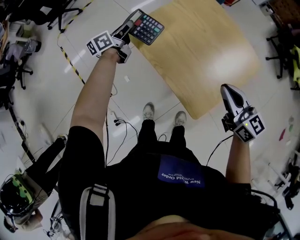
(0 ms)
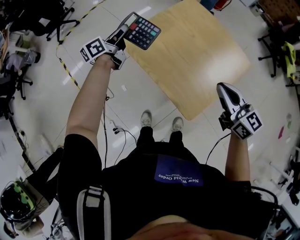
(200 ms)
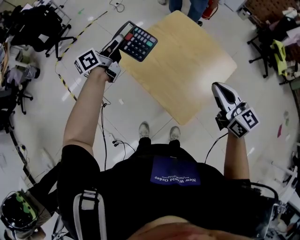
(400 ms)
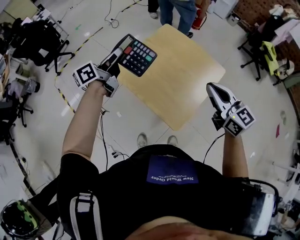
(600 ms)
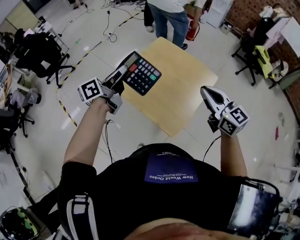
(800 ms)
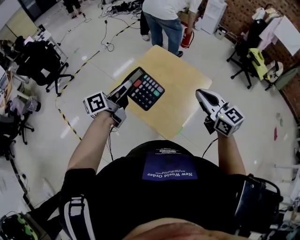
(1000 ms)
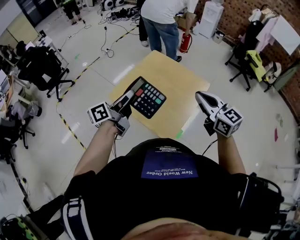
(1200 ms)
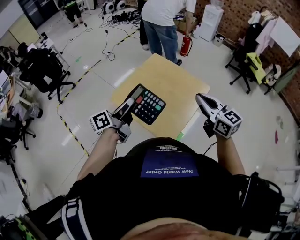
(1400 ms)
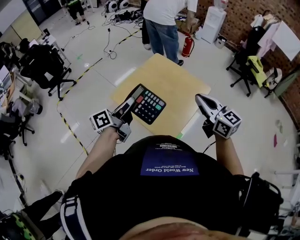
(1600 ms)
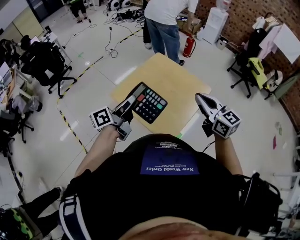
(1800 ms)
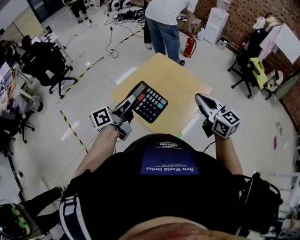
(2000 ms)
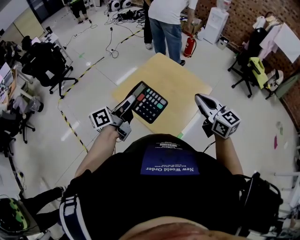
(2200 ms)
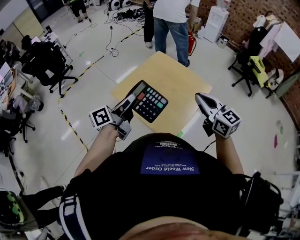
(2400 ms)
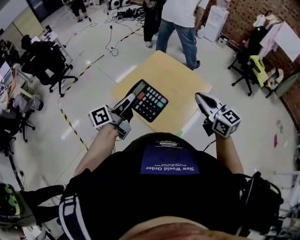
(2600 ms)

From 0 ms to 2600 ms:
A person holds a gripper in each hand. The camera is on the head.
From 0 ms to 1200 ms: The left gripper shifts about 40 cm upward, backward and to the right, and turns by about 20 degrees; the right gripper is displaced upward and to the right by some 20 cm.
From 1200 ms to 2600 ms: There are only small adjustments of the grippers.

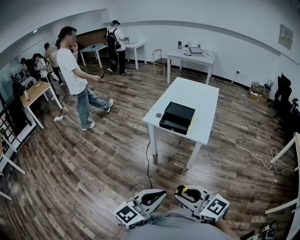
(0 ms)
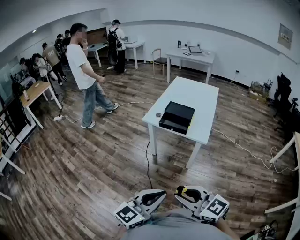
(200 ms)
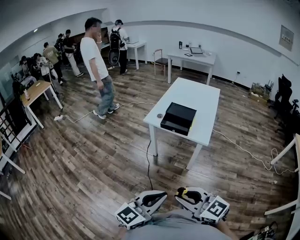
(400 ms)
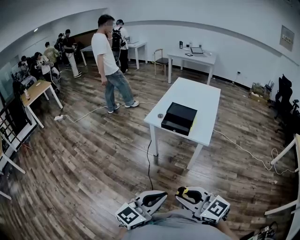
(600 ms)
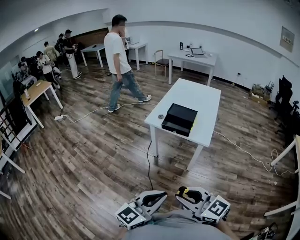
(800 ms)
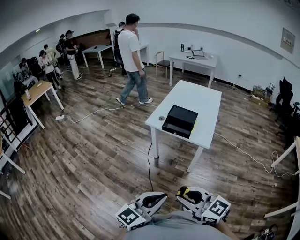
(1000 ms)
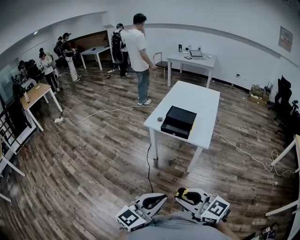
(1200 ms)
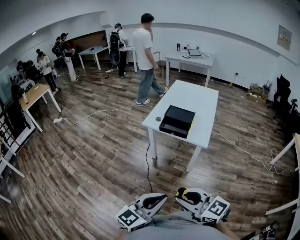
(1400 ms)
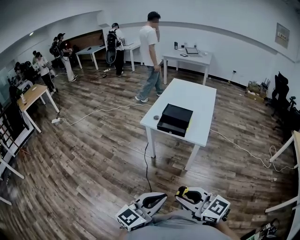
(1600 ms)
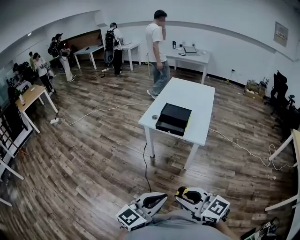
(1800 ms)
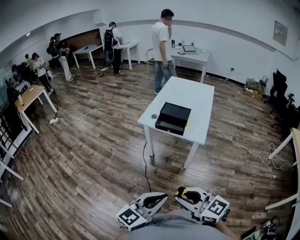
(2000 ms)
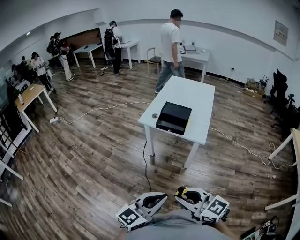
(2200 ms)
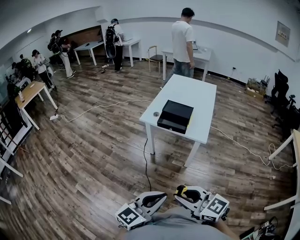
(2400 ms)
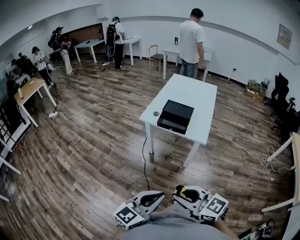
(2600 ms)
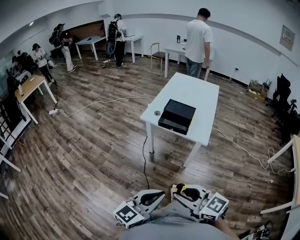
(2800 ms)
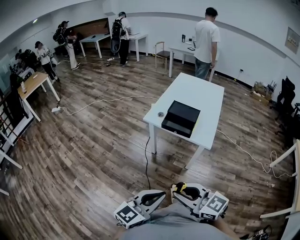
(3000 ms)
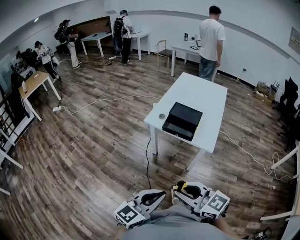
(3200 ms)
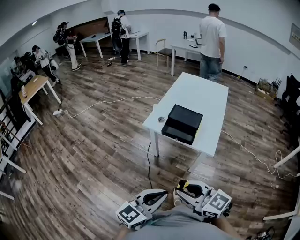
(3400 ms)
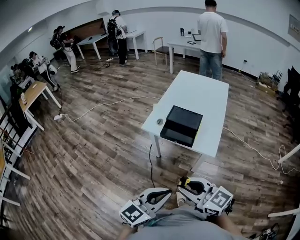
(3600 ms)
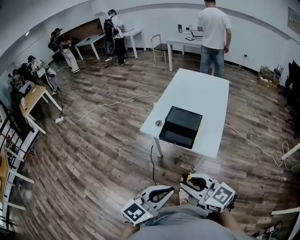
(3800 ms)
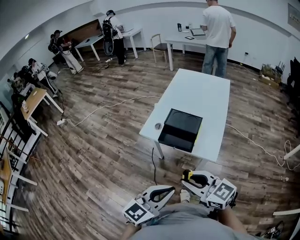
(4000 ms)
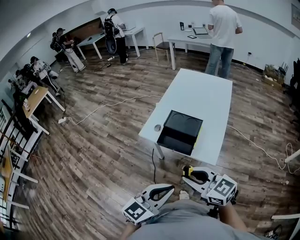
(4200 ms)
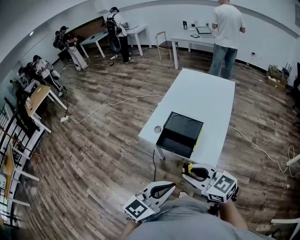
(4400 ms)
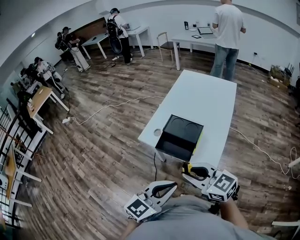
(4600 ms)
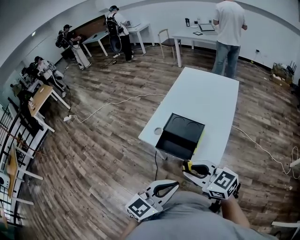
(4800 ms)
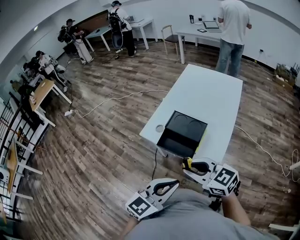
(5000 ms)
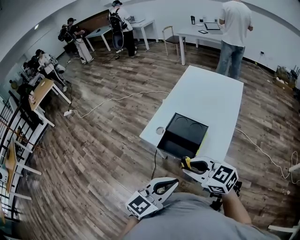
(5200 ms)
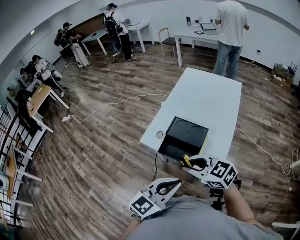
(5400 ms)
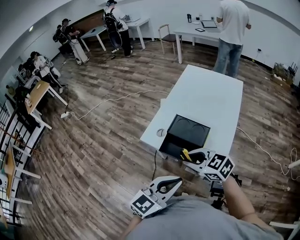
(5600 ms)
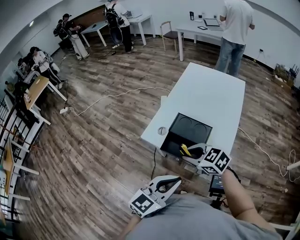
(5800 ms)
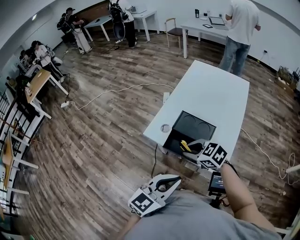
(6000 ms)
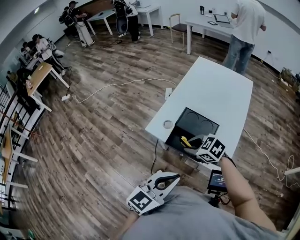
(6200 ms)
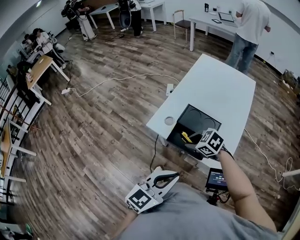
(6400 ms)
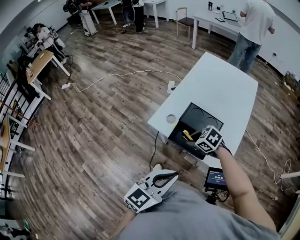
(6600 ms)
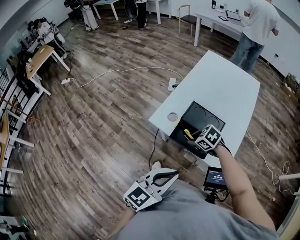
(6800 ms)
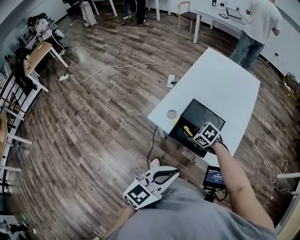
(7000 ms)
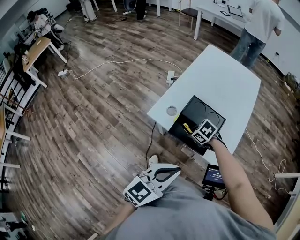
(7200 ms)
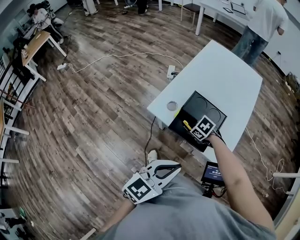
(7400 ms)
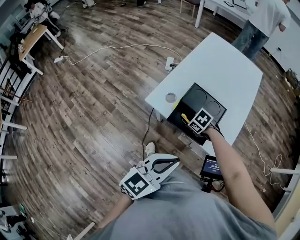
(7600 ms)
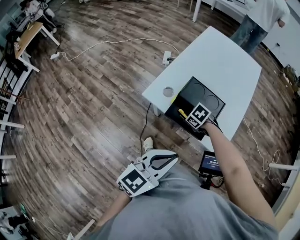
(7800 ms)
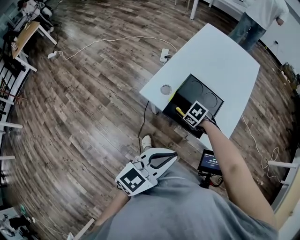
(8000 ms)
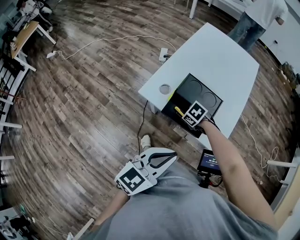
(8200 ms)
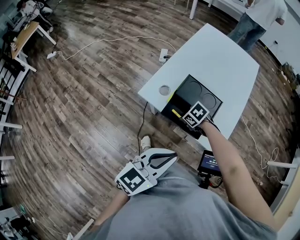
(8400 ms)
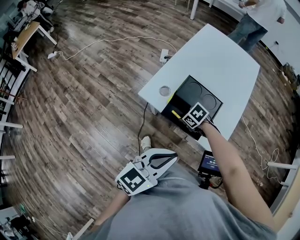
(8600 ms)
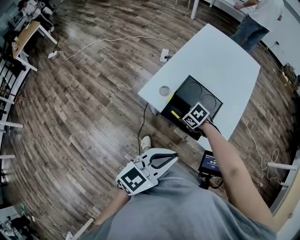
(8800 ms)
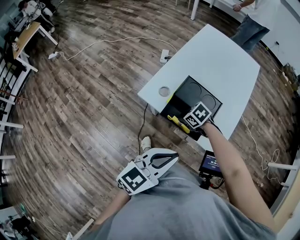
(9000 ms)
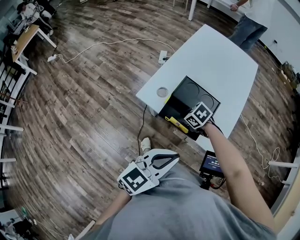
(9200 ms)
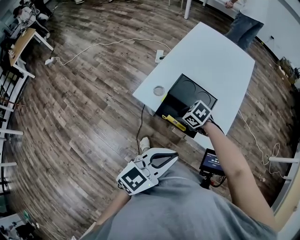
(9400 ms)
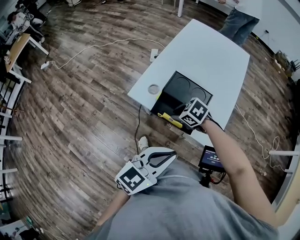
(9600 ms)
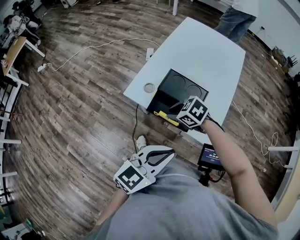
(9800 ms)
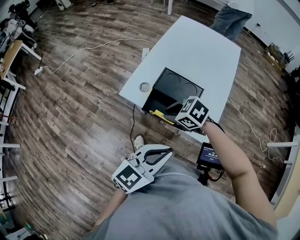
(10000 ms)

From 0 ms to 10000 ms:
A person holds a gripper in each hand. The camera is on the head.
From 0 ms to 2800 ms: The grippers stay close to where they were, moving slightly.
From 2800 ms to 4200 ms: The left gripper moves forward and to the right, approximately 25 cm; the right gripper heads forward, covering approximately 25 cm.
From 4200 ms to 5800 ms: The left gripper travels forward by approximately 10 cm. The right gripper is displaced forward and downward by roughly 20 cm, and rotates approximately 30 degrees.
From 5800 ms to 7200 ms: The right gripper moves downward, roughly 20 cm, and rotates roughly 30 degrees.
From 7200 ms to 8600 ms: The grippers move only a little.
From 8600 ms to 10000 ms: The right gripper moves upward, about 15 cm.

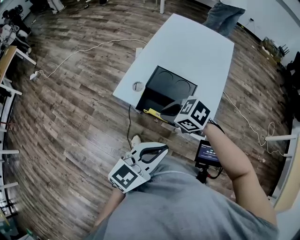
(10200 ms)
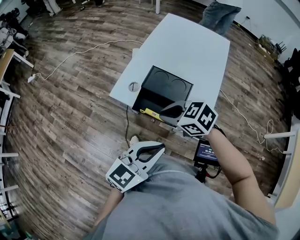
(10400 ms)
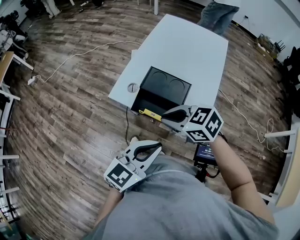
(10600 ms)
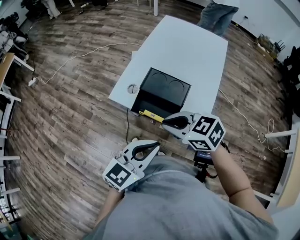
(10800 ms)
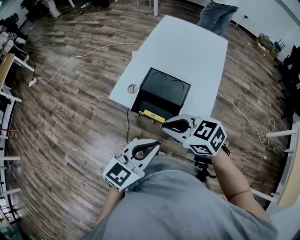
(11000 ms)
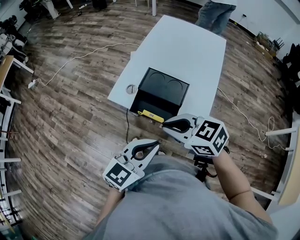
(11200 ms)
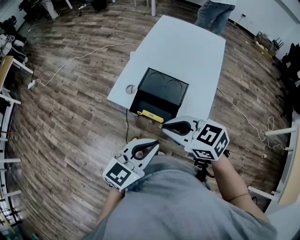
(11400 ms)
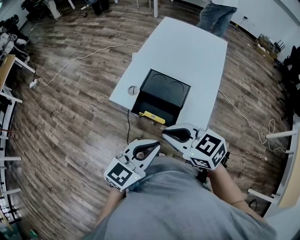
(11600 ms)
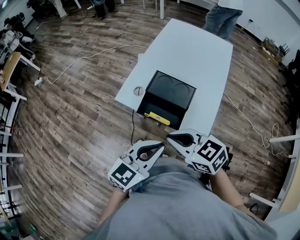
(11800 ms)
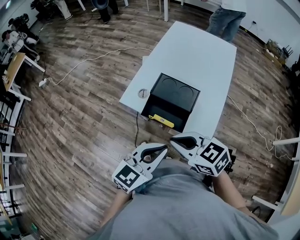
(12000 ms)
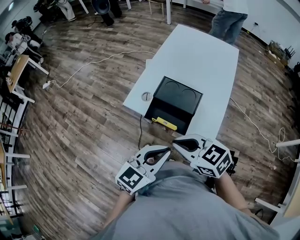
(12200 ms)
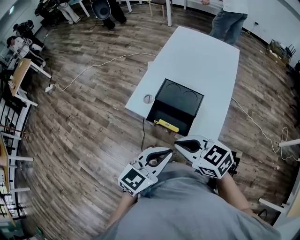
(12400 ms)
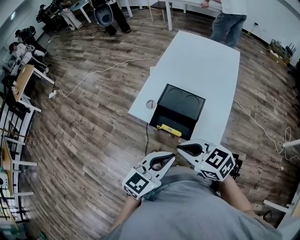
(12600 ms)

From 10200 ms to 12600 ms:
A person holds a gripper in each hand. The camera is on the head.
From 10200 ms to 11400 ms: The right gripper moves upward, roughly 10 cm, and turns by about 20 degrees.
From 11400 ms to 12600 ms: The grippers stay close to where they were, moving slightly.

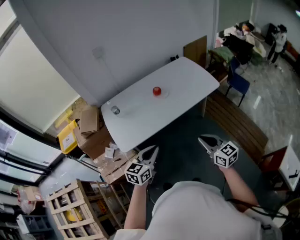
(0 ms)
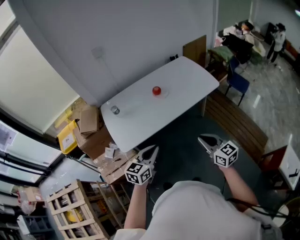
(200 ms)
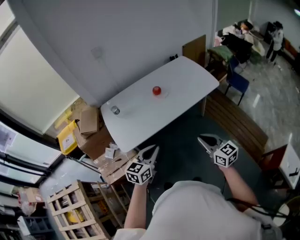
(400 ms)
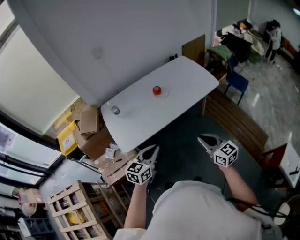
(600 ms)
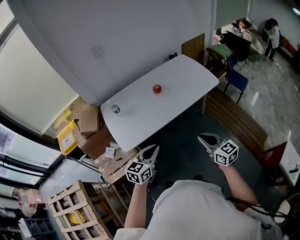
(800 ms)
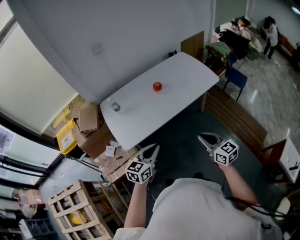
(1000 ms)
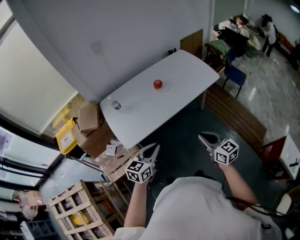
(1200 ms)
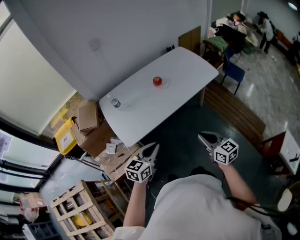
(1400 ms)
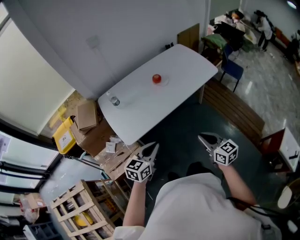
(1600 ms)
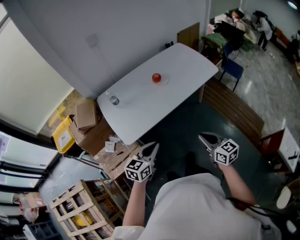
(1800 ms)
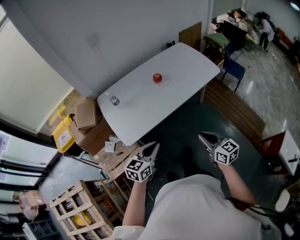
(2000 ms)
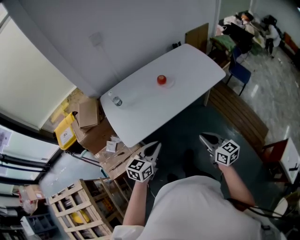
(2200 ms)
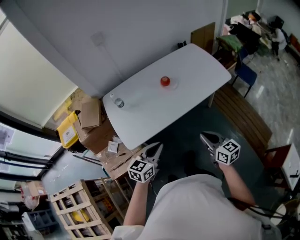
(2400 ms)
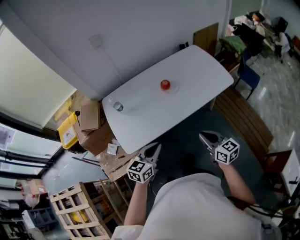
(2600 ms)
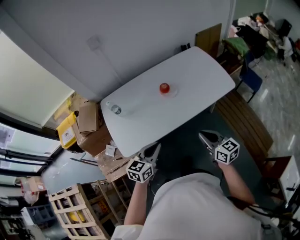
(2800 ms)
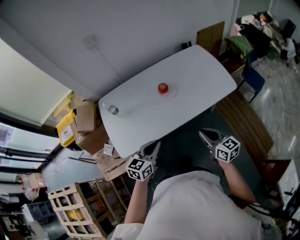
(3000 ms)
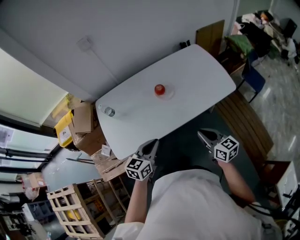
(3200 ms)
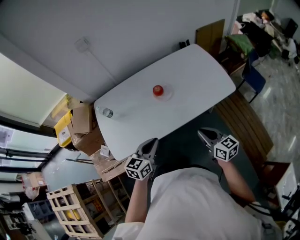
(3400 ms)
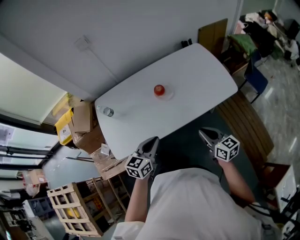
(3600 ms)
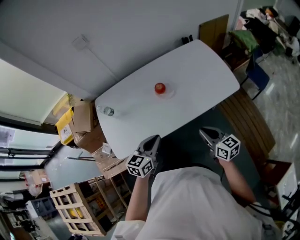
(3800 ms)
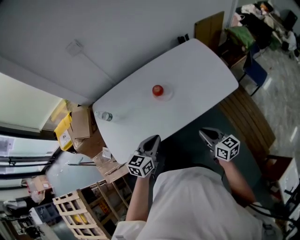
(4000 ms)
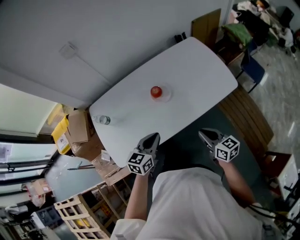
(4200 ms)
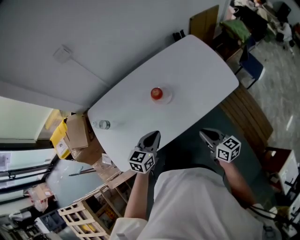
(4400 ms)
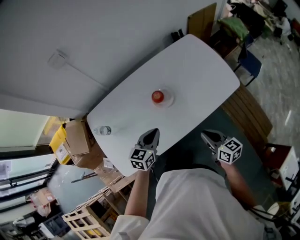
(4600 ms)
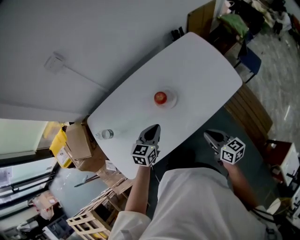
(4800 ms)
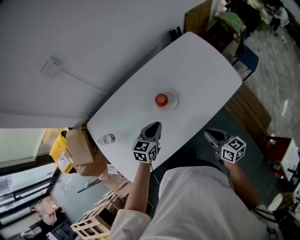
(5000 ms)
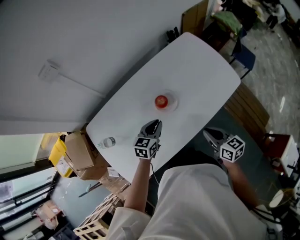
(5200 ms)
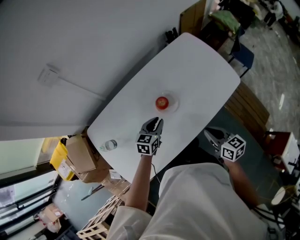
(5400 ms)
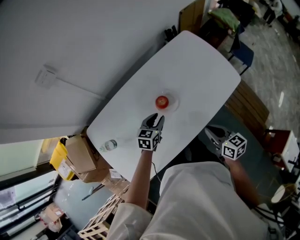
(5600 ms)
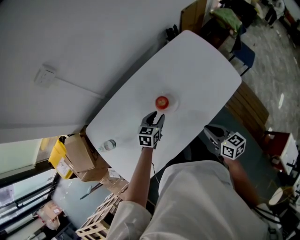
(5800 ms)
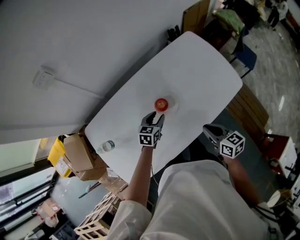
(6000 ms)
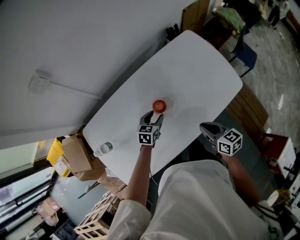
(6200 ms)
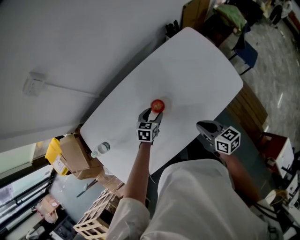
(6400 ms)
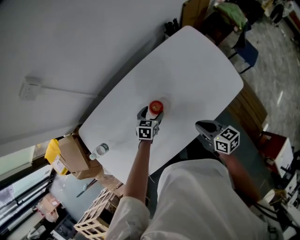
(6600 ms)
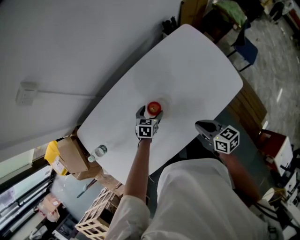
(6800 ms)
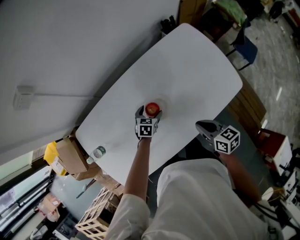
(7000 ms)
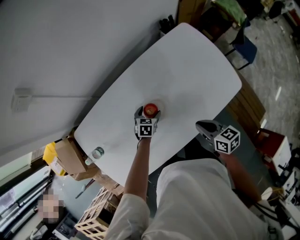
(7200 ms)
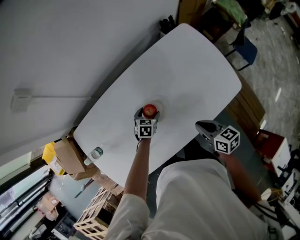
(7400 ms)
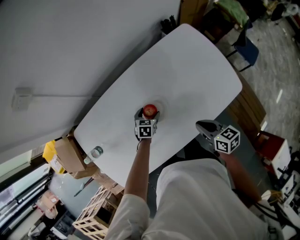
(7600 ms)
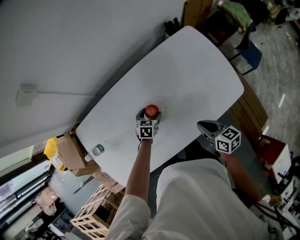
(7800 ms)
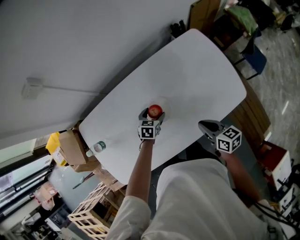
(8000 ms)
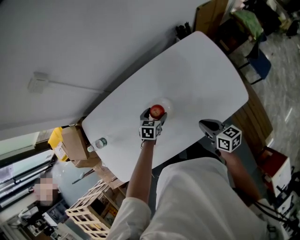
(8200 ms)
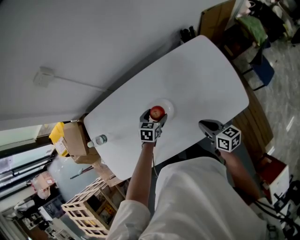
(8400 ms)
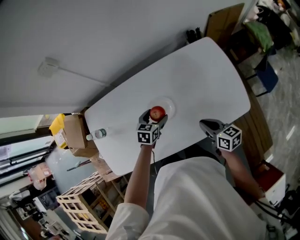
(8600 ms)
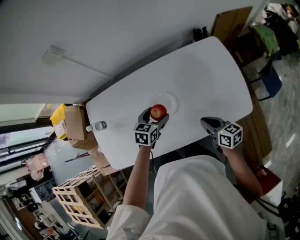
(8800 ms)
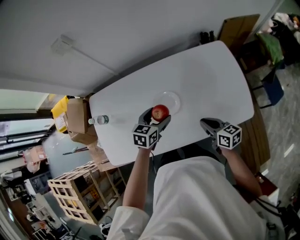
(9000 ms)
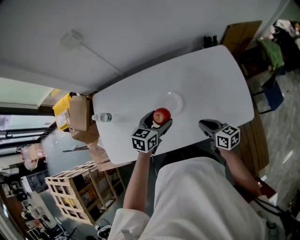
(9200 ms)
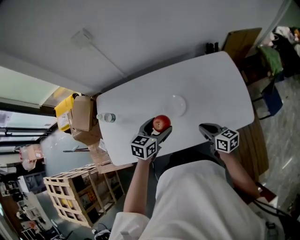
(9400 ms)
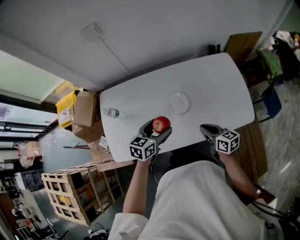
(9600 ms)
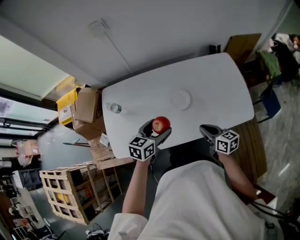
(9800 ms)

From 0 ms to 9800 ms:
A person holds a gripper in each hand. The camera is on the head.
From 0 ms to 1400 ms: The two grippers go about 5 cm to the left.
From 1400 ms to 2800 ms: Both grippers travel together forward, about 15 cm.
From 2800 ms to 4200 ms: The right gripper goes some 15 cm forward, downward and to the right. The left gripper shifts roughly 15 cm forward.
From 4200 ms to 5600 ms: The left gripper moves forward and downward, about 25 cm; the right gripper is displaced forward and to the left by roughly 10 cm.
From 5600 ms to 7000 ms: The left gripper goes approximately 15 cm downward and forward, and opens its fingers. The right gripper heads forward, covering some 10 cm.
From 7000 ms to 8400 ms: The left gripper shifts about 10 cm upward; the right gripper shifts by about 5 cm.
From 8400 ms to 9800 ms: The right gripper heads to the left and backward, covering approximately 10 cm. Meanwhile the left gripper heads upward, backward and to the left, covering some 25 cm, and swivels about 20 degrees.
